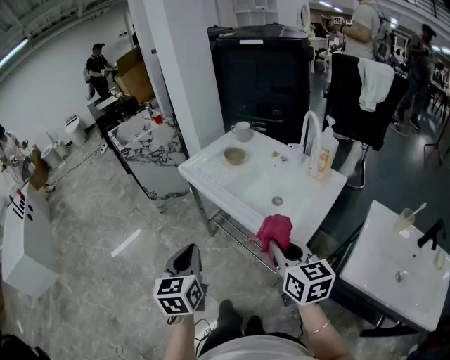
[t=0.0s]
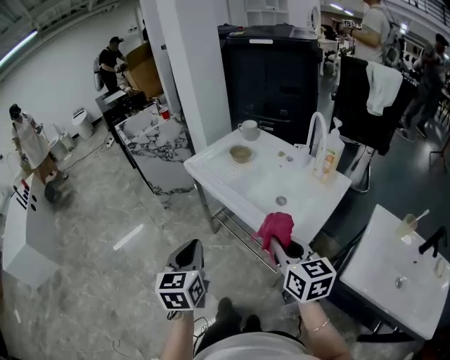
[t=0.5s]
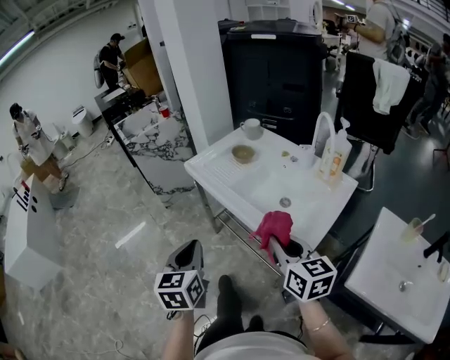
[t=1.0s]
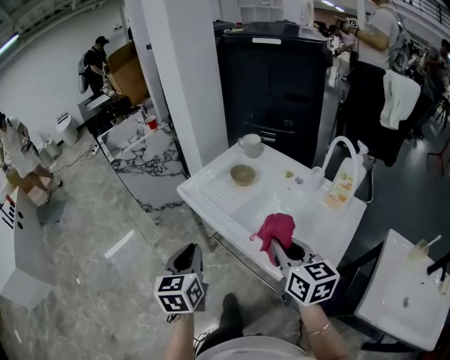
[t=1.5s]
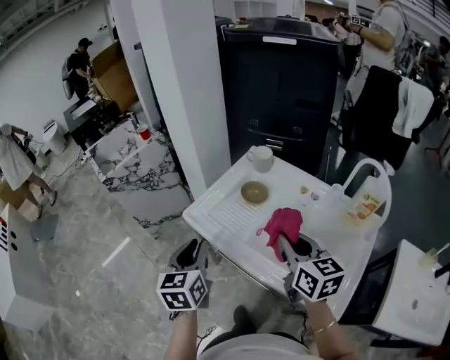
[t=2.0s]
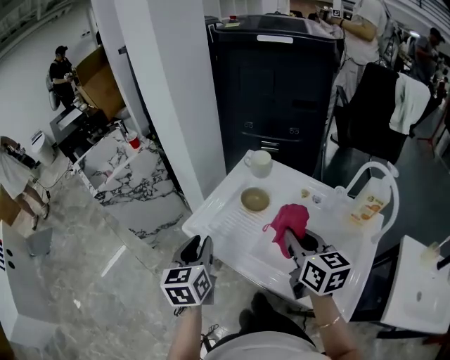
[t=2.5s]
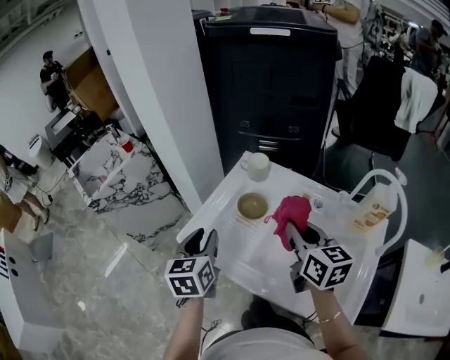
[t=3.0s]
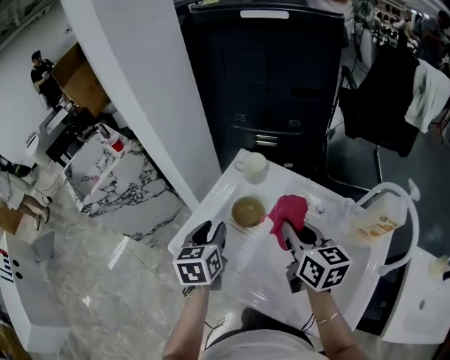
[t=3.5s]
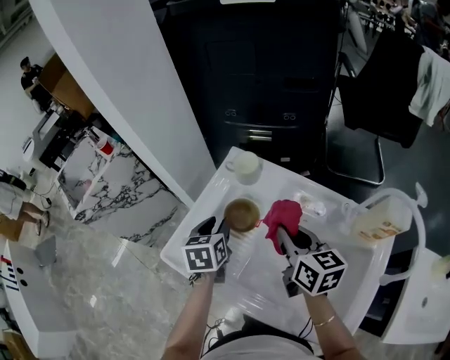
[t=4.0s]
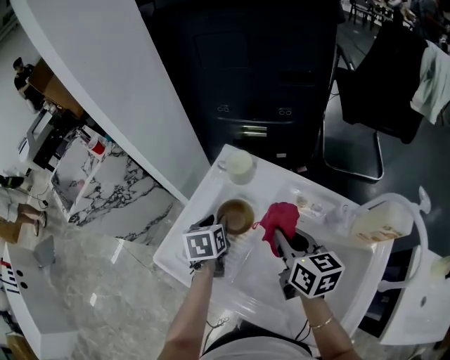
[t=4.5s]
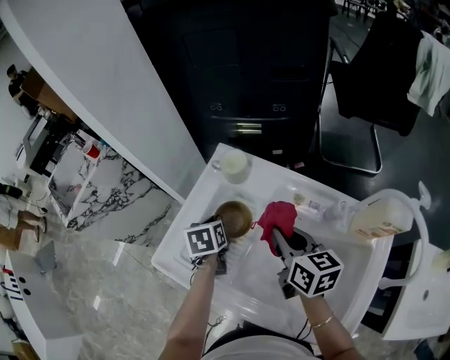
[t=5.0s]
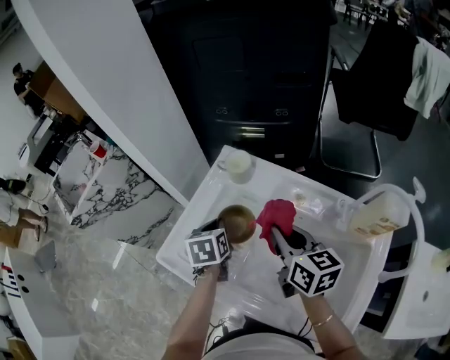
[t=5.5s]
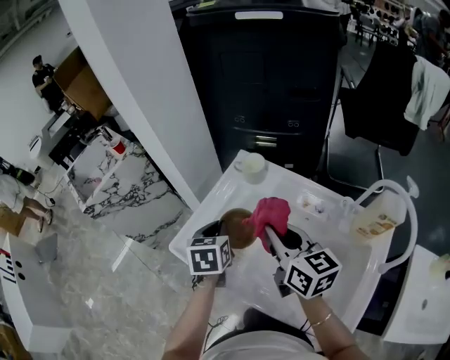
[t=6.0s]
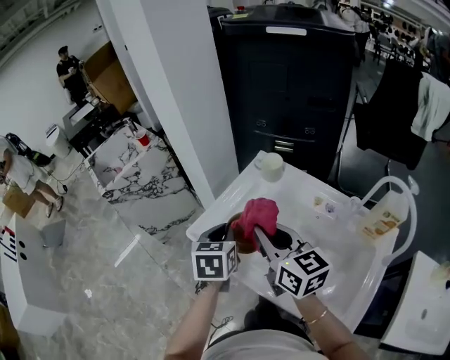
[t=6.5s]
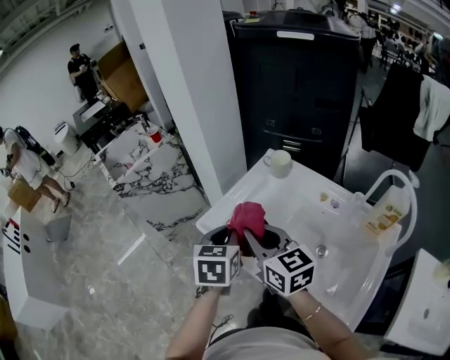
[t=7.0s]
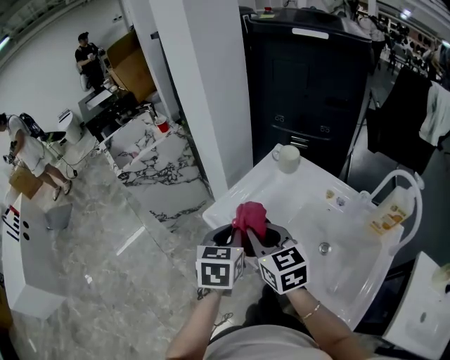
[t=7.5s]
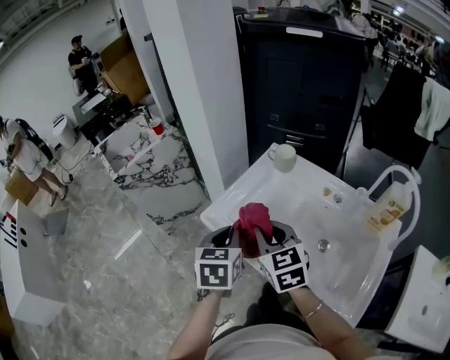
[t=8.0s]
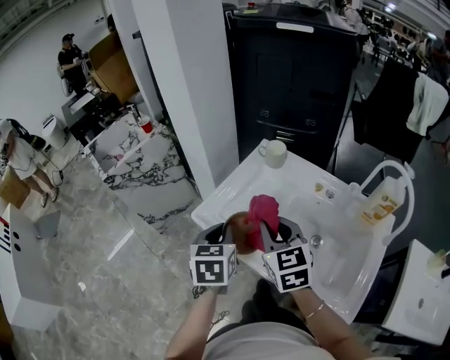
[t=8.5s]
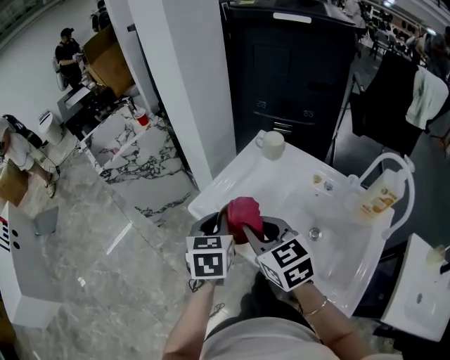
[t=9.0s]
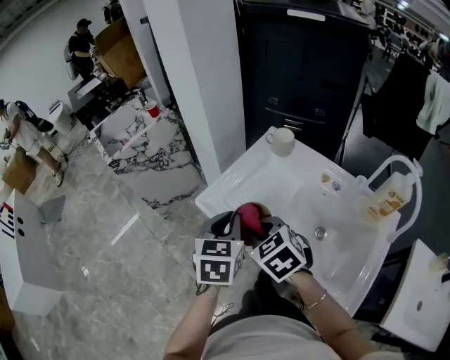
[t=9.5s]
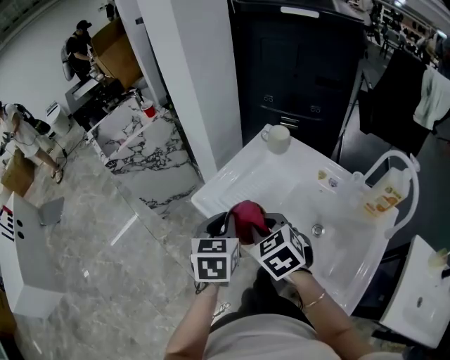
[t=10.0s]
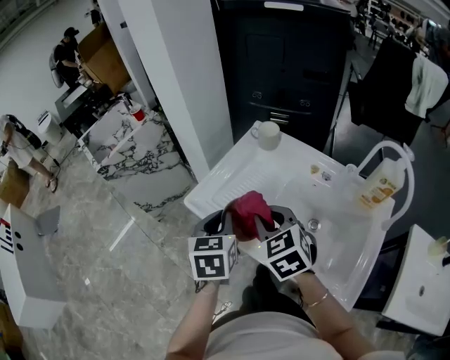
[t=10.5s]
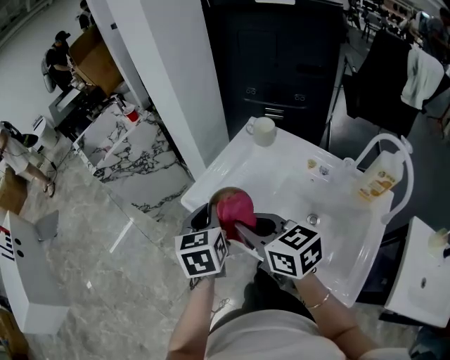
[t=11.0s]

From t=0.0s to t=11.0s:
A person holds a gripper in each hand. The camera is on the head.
From t=0.0s to t=2.0s: The two grippers go approximately 40 cm forward.
From t=2.0s to t=3.5s: The two grippers go approximately 20 cm forward.
From t=3.5s to t=5.5s: The left gripper is displaced downward, forward and to the right by about 10 cm, and closes up.
From t=5.5s to t=7.5s: The left gripper goes some 30 cm backward, upward and to the left, while the right gripper heads to the left and backward, covering about 25 cm, and turns by approximately 30 degrees.

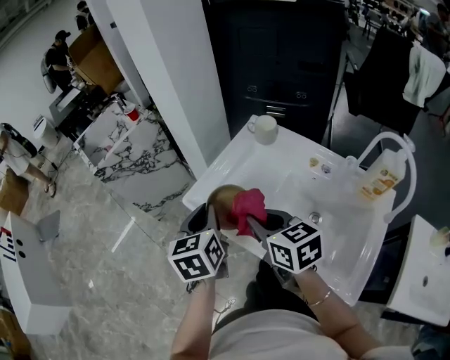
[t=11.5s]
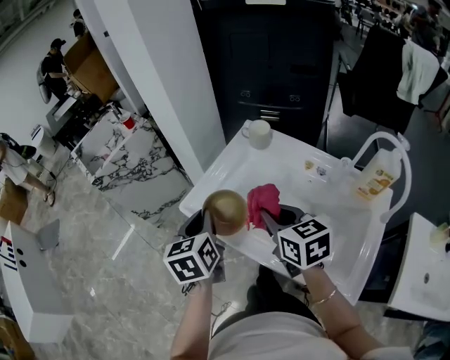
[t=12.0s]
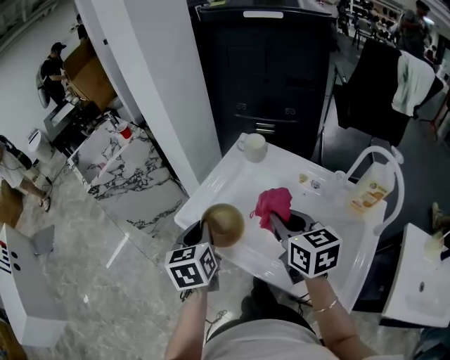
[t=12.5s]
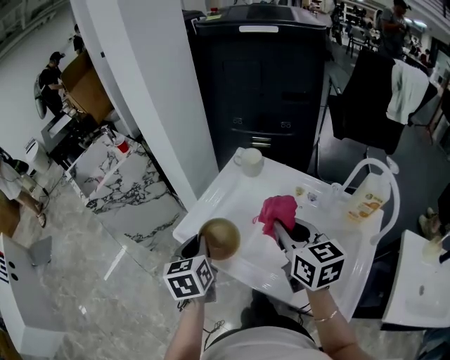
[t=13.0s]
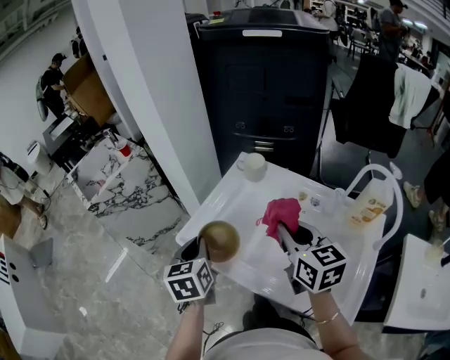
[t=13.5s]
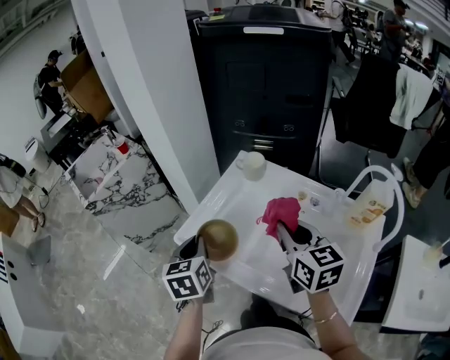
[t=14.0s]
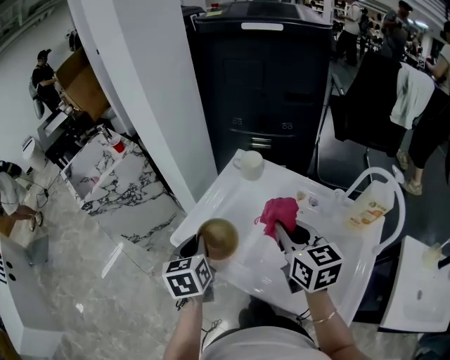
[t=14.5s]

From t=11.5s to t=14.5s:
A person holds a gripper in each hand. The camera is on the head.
From t=11.5s to t=13.0s: The right gripper is displaced to the right and upward by roughly 15 cm, and changes its angle by some 20 degrees.
From t=13.0s to t=14.5s: The grippers move only a little.

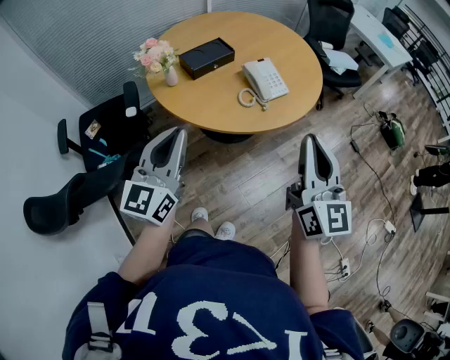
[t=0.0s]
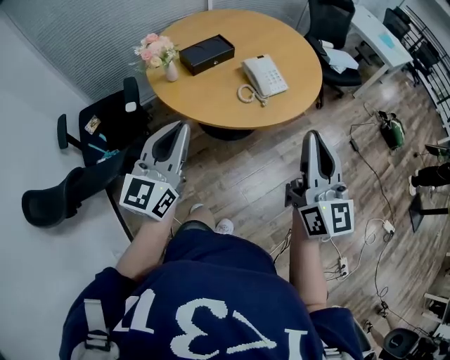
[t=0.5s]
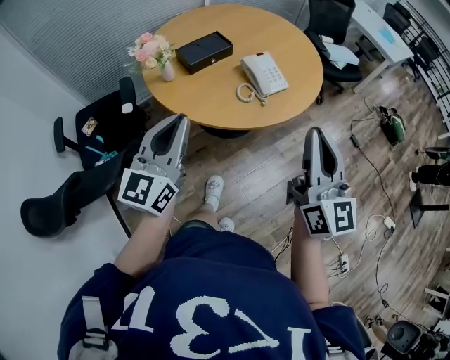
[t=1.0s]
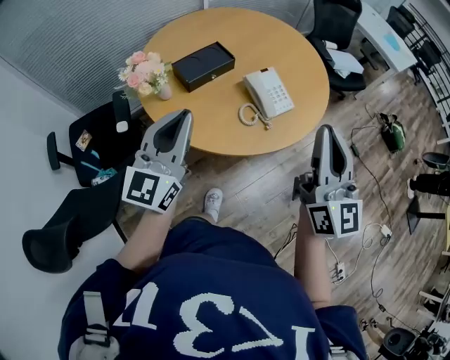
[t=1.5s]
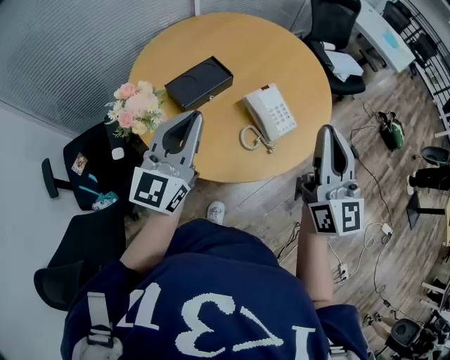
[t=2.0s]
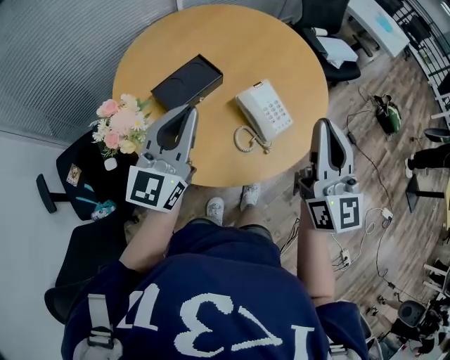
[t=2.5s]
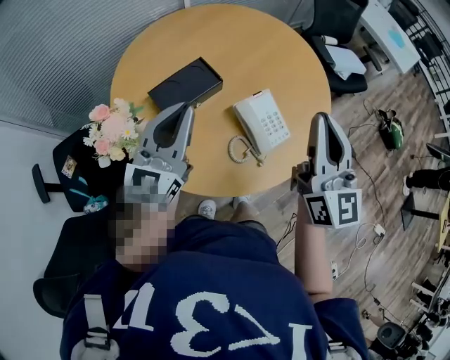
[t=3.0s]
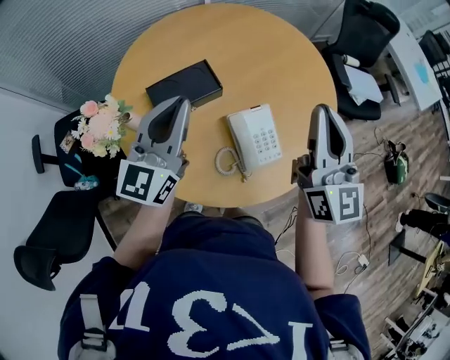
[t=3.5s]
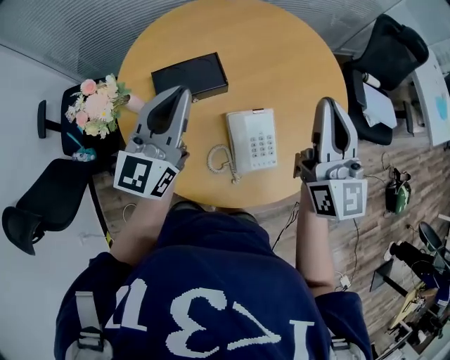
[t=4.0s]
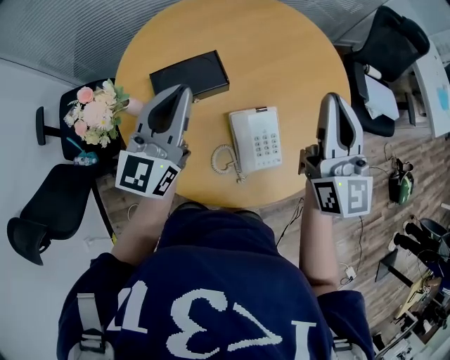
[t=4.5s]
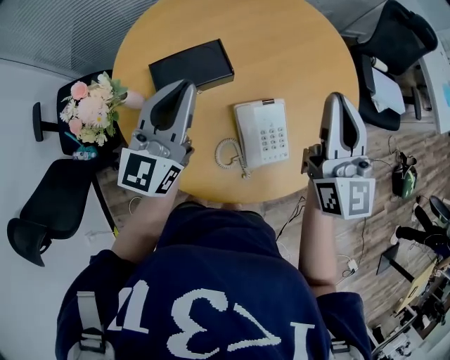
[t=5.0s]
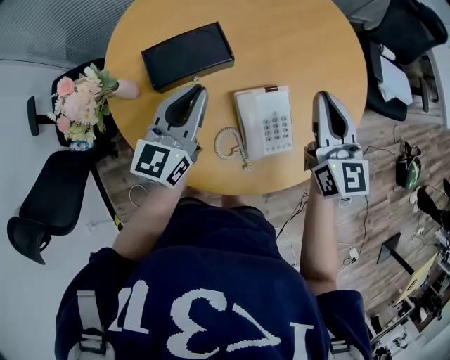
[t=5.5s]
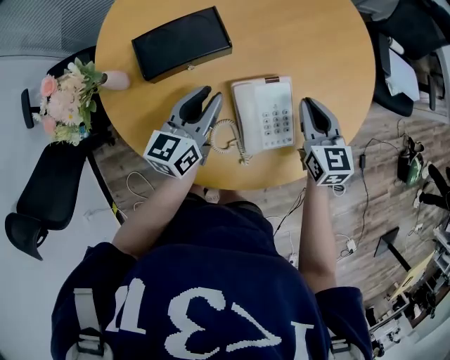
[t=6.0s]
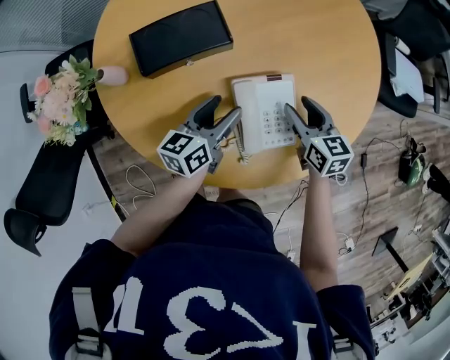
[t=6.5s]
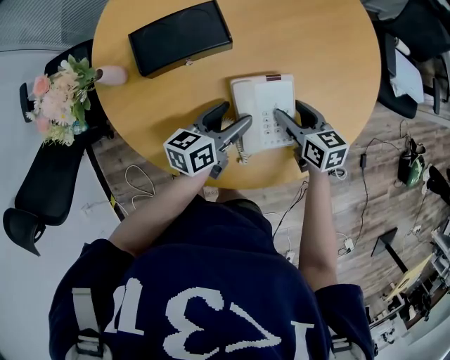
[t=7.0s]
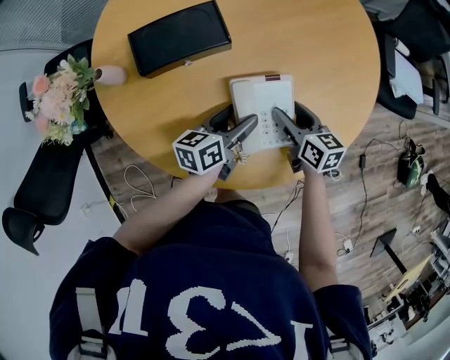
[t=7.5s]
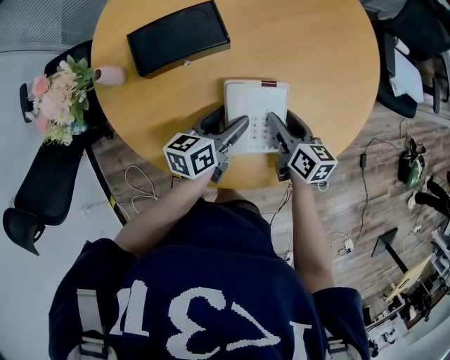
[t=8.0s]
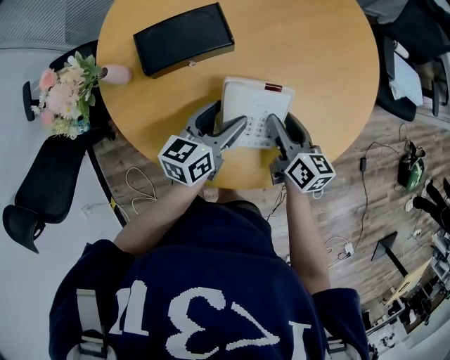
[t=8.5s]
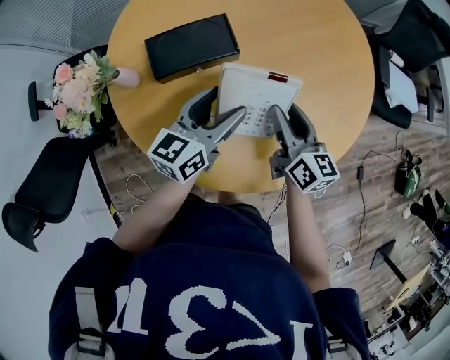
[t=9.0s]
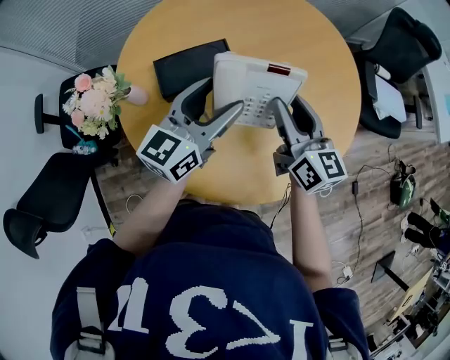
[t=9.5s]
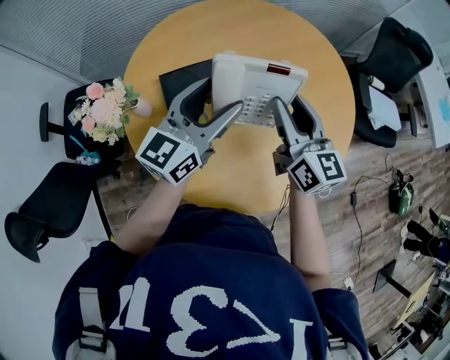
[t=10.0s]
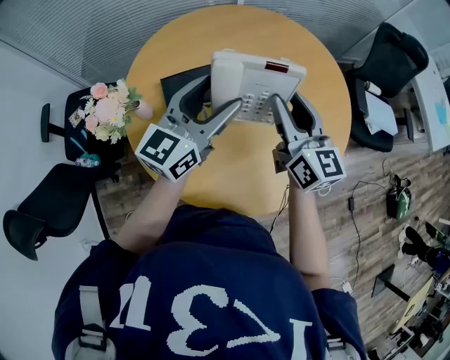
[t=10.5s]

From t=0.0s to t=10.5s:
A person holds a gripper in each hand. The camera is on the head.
From t=0.0s to t=2.0s: Both grippers move forward, approximately 25 cm.
From t=2.0s to t=4.0s: The right gripper changes place by roughly 25 cm, and swivels about 20 degrees, while the left gripper ends up about 15 cm from where it was, and rotates roughly 20 degrees.
From t=4.0s to t=6.5s: The grippers both shift downward by some 30 cm. The left gripper swivels roughly 50 degrees, and opens up; the right gripper tips its fingers downward by approximately 40 degrees, and opens.
From t=6.5s to t=8.5s: The right gripper shifts by approximately 5 cm, and changes its angle by about 20 degrees.
From t=8.5s to t=10.5s: The grippers both shift upward by approximately 25 cm. The right gripper rotates some 30 degrees, while the left gripper swivels roughly 40 degrees.

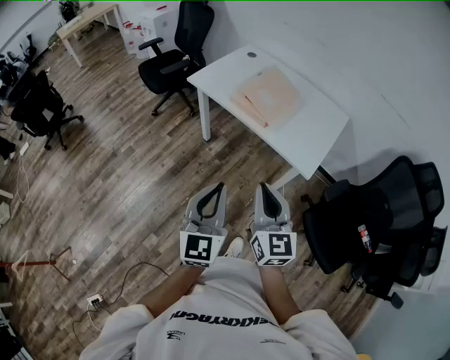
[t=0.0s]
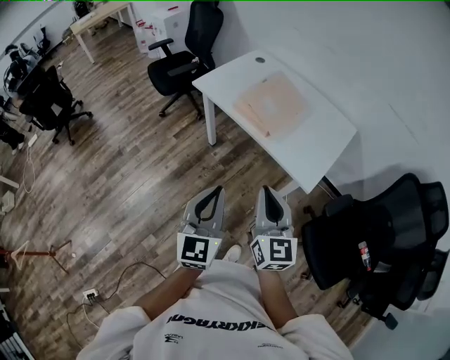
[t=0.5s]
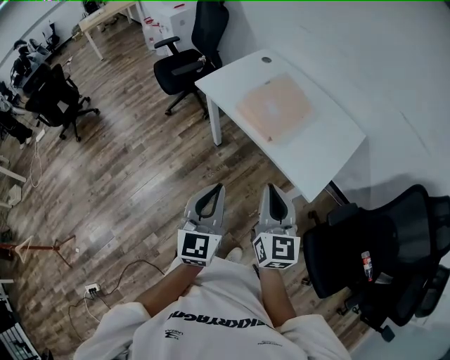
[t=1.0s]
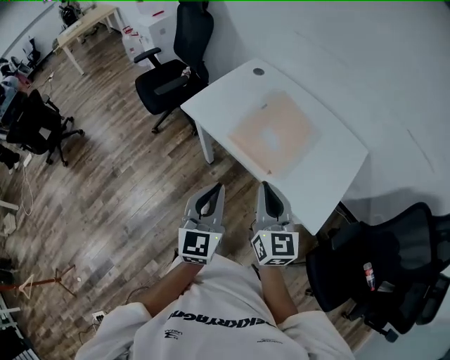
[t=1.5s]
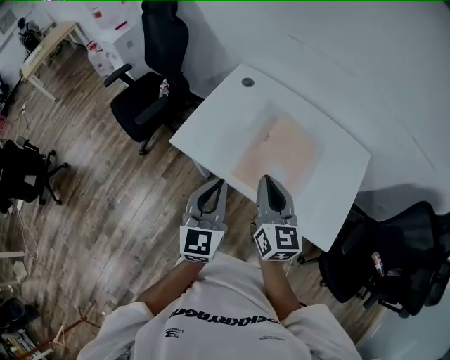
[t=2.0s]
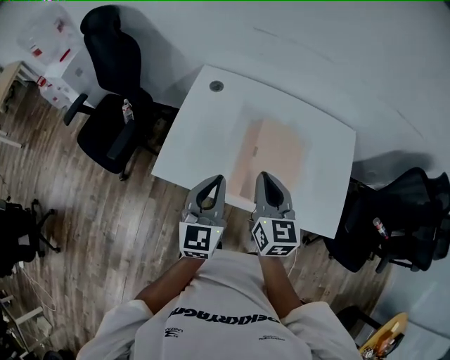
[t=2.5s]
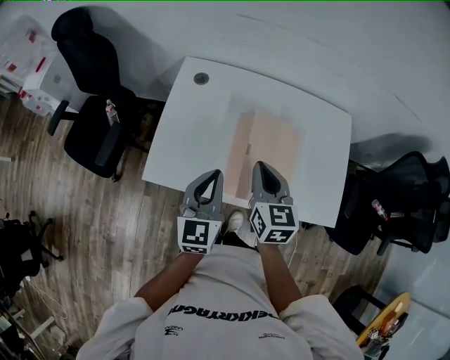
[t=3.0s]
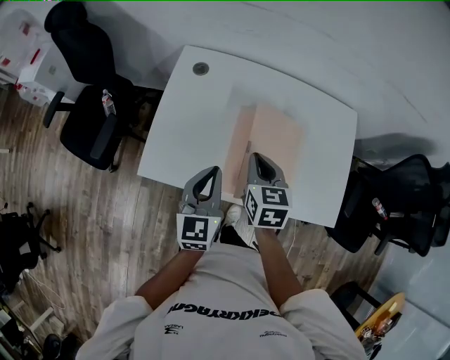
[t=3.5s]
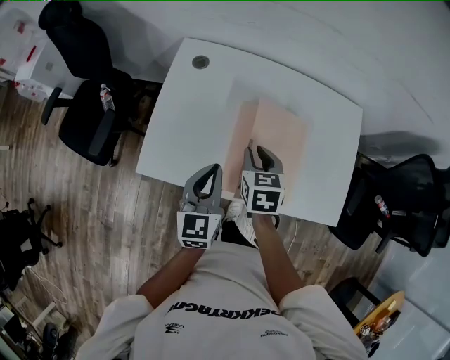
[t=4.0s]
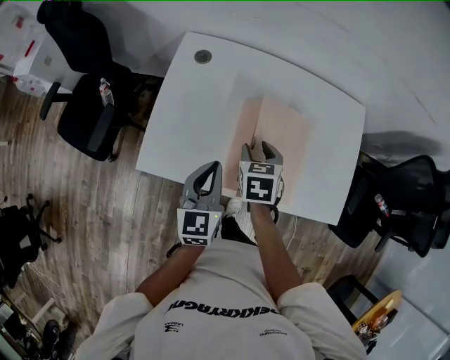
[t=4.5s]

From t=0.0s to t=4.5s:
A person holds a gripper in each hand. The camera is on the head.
From t=0.0s to t=2.0s: The pair of grippers is taken forward, approximately 50 cm.
From t=2.0s to t=4.5s: The grippers both shift forward and downward by approximately 25 cm. The left gripper swivels some 20 degrees, while the right gripper tilts its fingers approximately 50 degrees downward, and opens.
